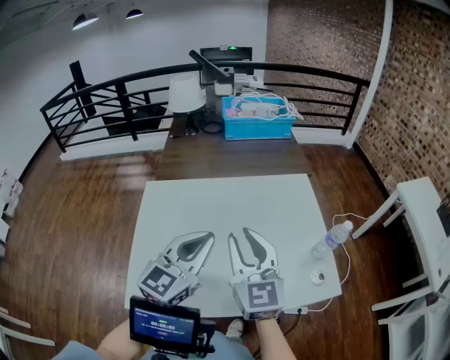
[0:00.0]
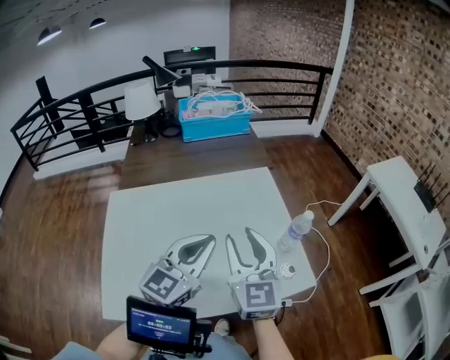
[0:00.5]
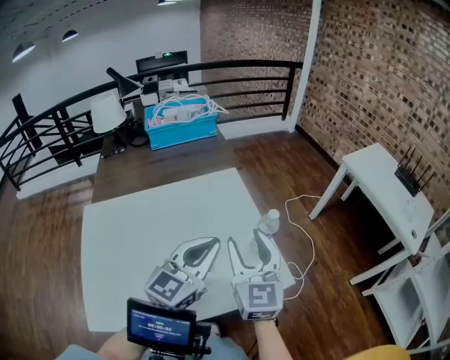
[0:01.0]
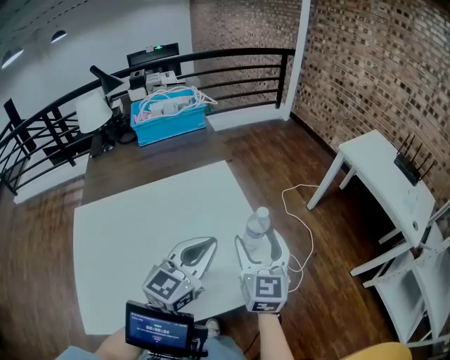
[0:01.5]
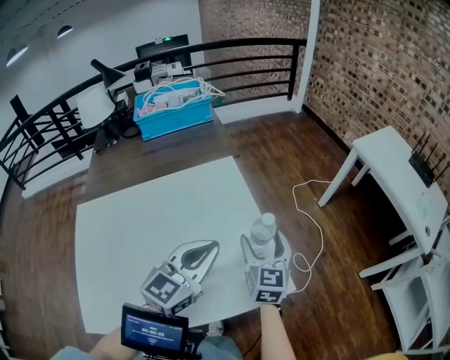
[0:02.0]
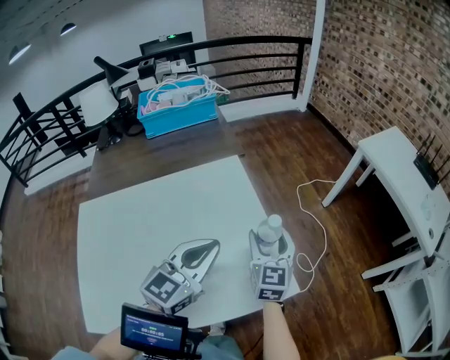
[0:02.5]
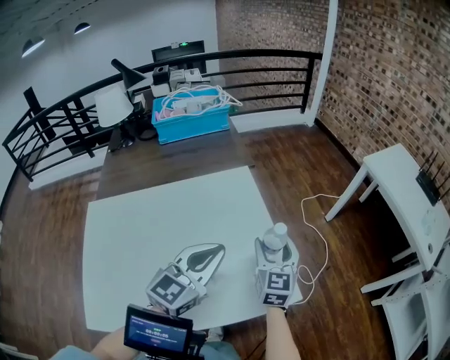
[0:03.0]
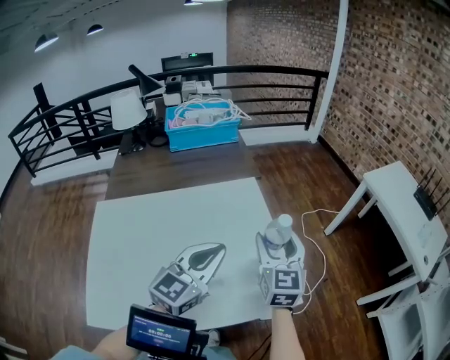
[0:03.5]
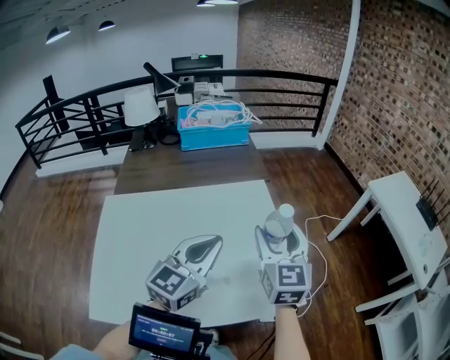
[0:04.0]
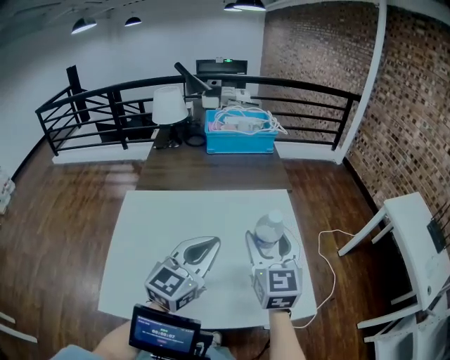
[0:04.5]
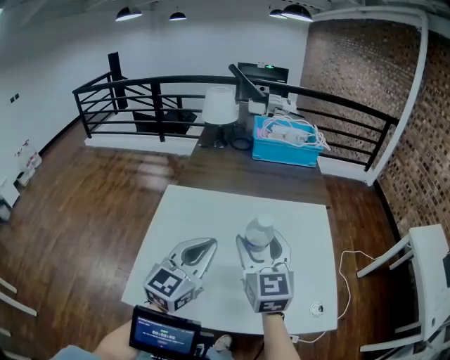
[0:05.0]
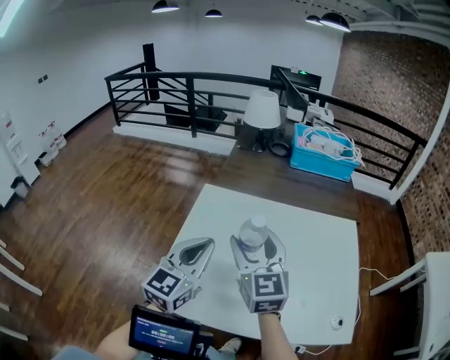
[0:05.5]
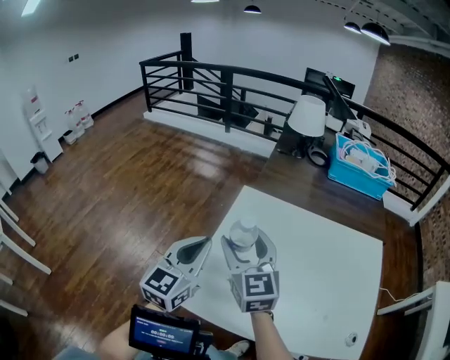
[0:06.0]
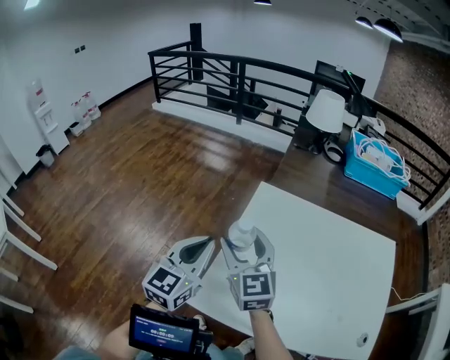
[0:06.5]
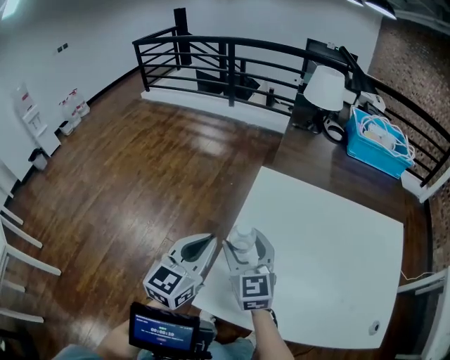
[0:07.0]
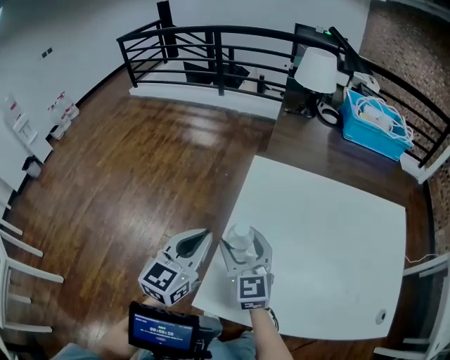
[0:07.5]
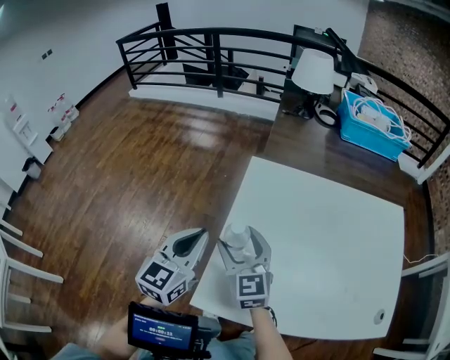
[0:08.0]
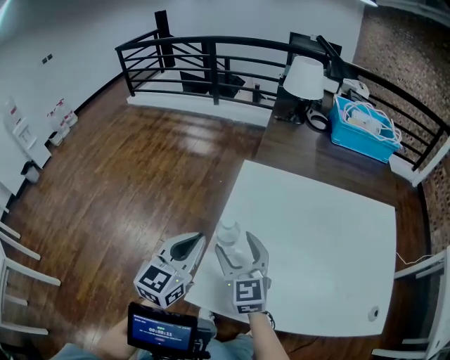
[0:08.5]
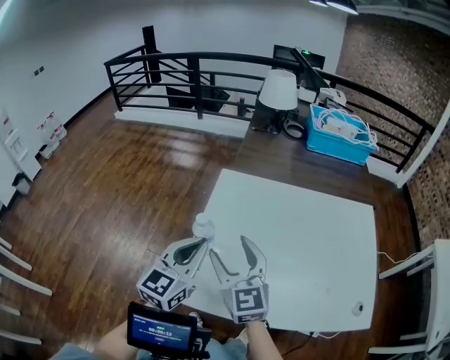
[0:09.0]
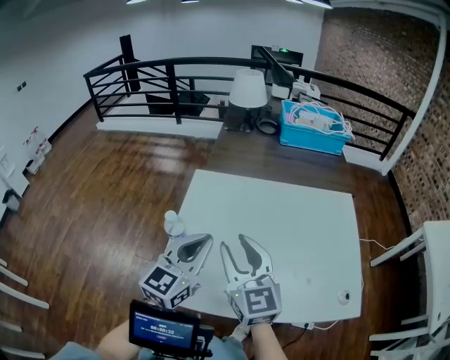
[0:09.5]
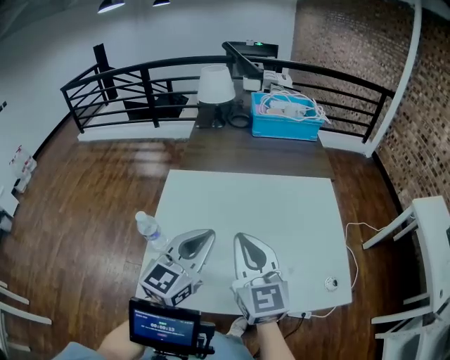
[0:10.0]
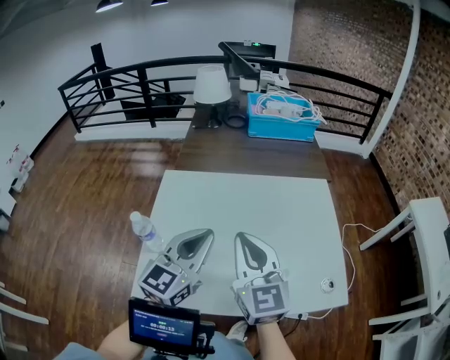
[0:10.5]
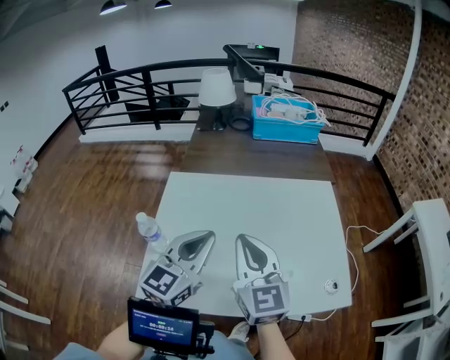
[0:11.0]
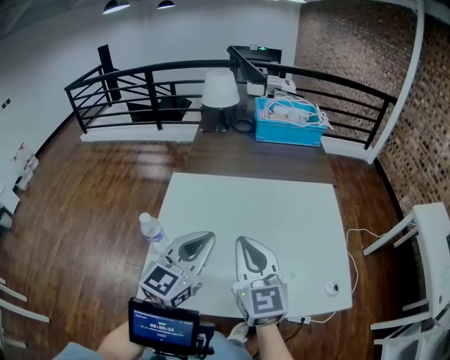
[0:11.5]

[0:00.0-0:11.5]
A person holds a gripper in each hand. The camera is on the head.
0:00.0 to 0:02.0: The right gripper moves to the right, forward and downward, about 35 cm, turns by about 30 degrees, and opens up; the left gripper travels to the right and forward by roughly 25 cm.
0:02.0 to 0:04.0: The right gripper shifts approximately 15 cm upward and to the left, while the left gripper is displaced to the left and upward by about 10 cm.
0:04.0 to 0:06.0: Both grippers are carried approximately 50 cm. The left gripper swivels approximately 40 degrees, while the right gripper turns by approximately 50 degrees.
0:06.0 to 0:07.5: The two grippers go approximately 10 cm downward and to the left.
0:07.5 to 0:09.5: The right gripper goes about 25 cm to the right, upward and backward, and closes up; the left gripper goes approximately 20 cm to the right and upward.
0:09.5 to 0:11.5: Both grippers move to the right, roughly 10 cm. The right gripper closes up.

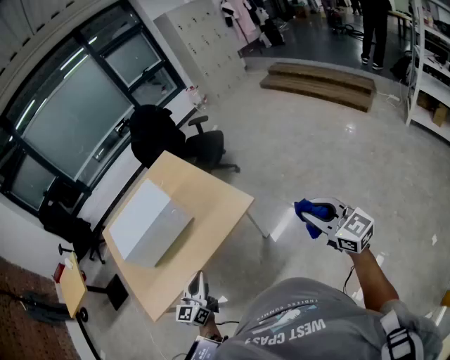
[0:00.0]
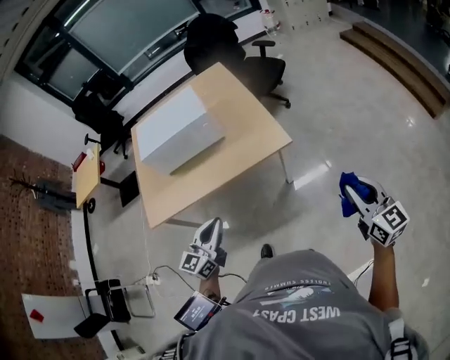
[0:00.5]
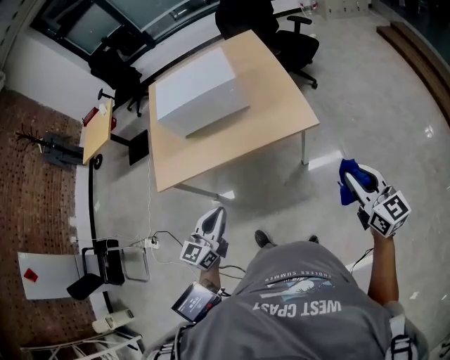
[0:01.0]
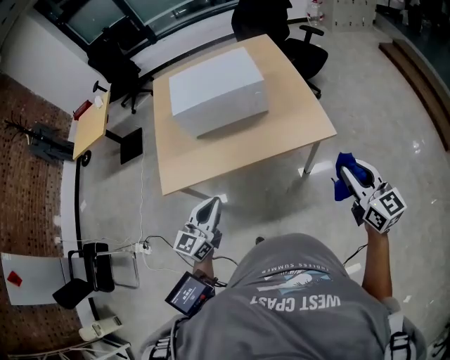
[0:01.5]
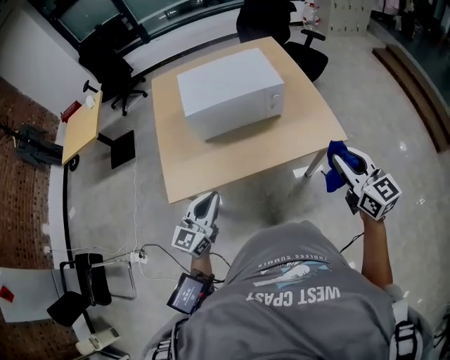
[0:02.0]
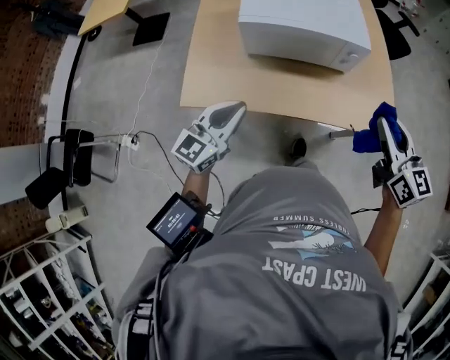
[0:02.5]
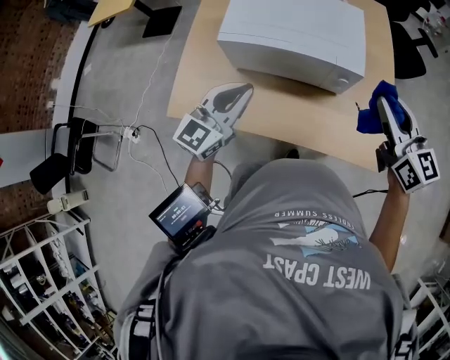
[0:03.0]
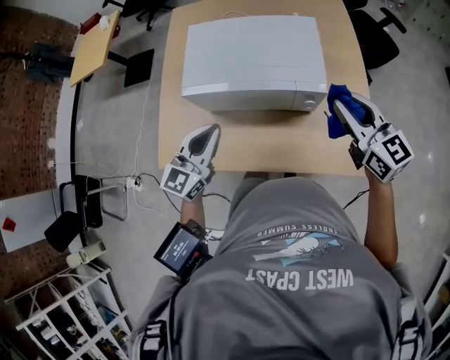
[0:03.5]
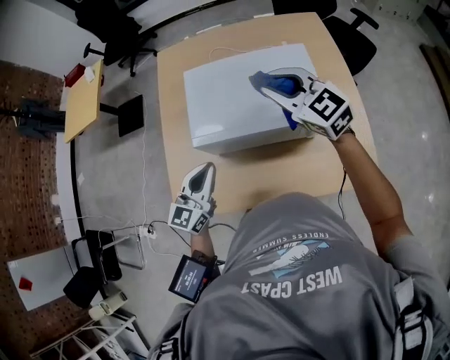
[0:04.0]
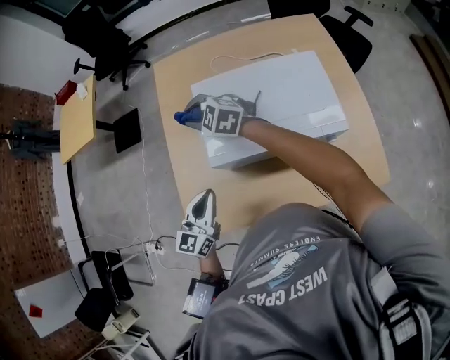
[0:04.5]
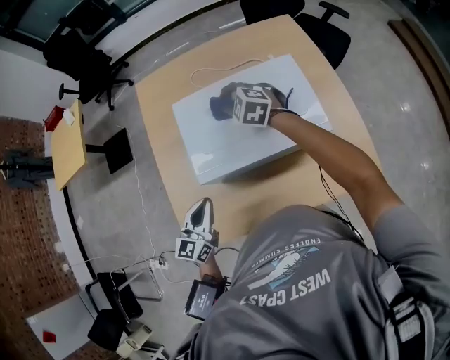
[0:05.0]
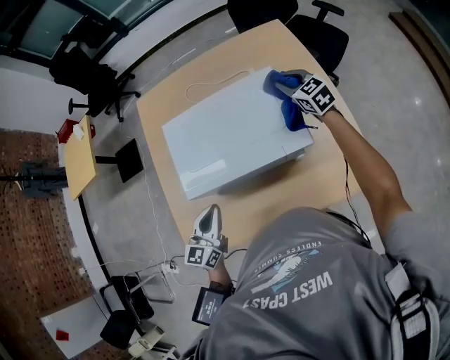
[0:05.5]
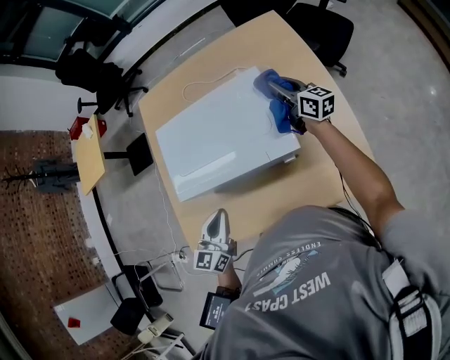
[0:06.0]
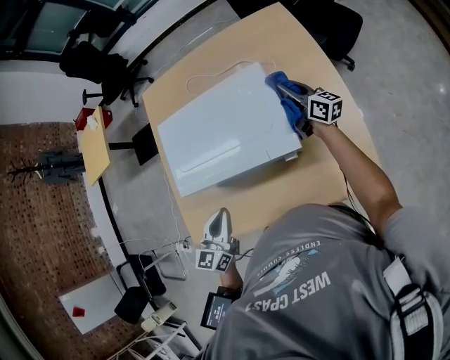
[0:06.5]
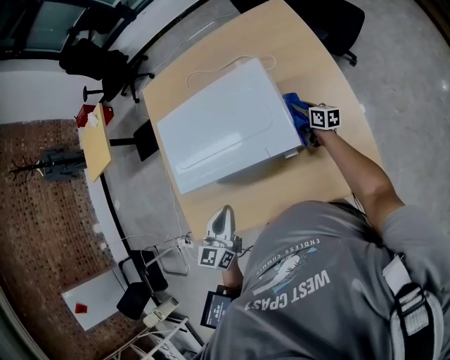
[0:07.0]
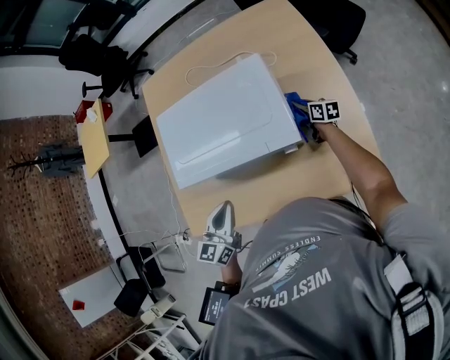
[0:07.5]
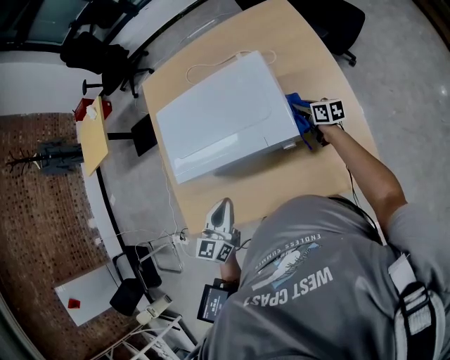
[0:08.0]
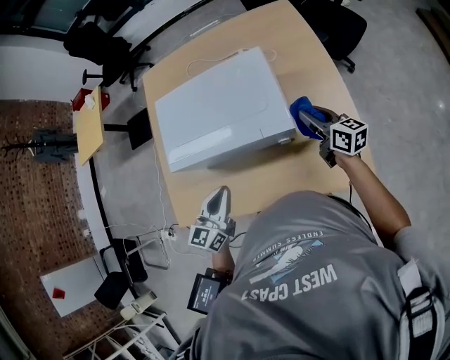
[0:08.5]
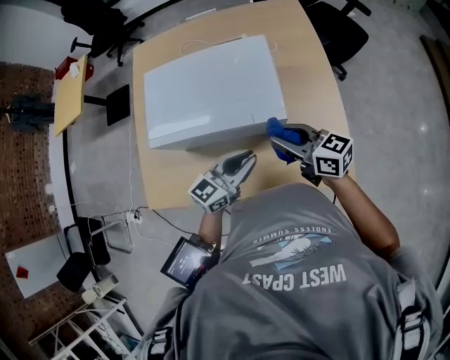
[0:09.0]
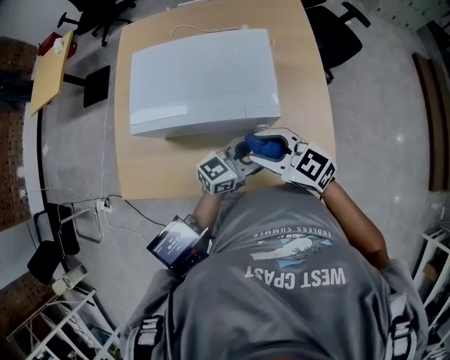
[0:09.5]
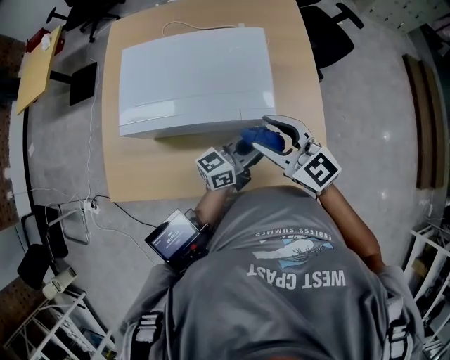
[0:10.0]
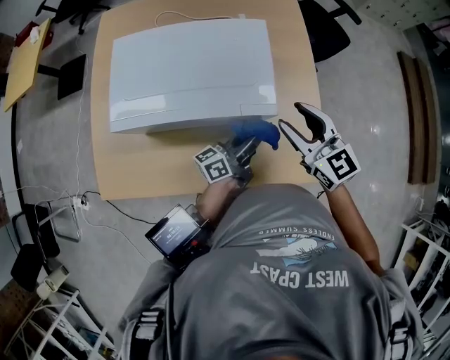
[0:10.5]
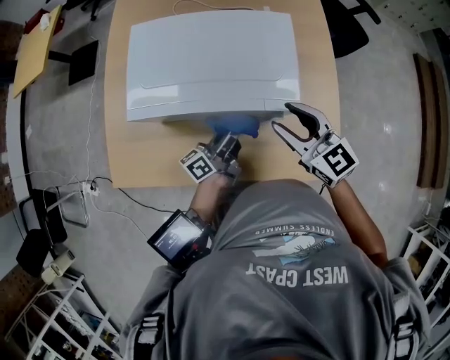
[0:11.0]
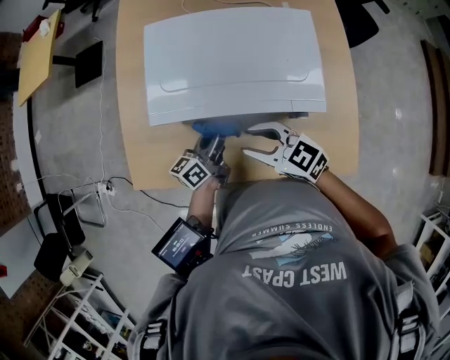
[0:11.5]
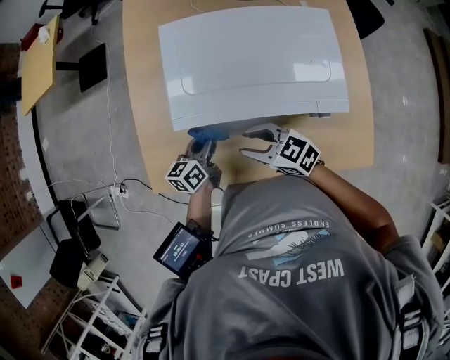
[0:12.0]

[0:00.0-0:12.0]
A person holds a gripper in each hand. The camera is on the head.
0:00.0 to 0:02.0: The right gripper travels to the left and forward by some 35 cm, while the left gripper heads to the left, covering roughly 25 cm.
0:02.0 to 0:04.0: The left gripper moves forward, approximately 30 cm; the right gripper goes approximately 50 cm forward, and swivels about 30 degrees.
0:04.0 to 0:06.0: The left gripper heads to the right, covering some 10 cm. The right gripper goes approximately 30 cm to the right, downward and forward, and rotates around the line of its fingers by approximately 50 degrees, clockwise from behind.
0:06.0 to 0:08.0: The right gripper is displaced downward and backward by roughly 20 cm, and turns by roughly 30 degrees.
0:08.0 to 0:10.0: The left gripper changes place by about 25 cm, turns by about 50 degrees, and opens, then closes again. Meanwhile the right gripper is displaced upward by approximately 25 cm, twists some 50 degrees counterclockwise, seen from behind, and opens up.
0:10.0 to 0:12.0: The left gripper moves about 40 cm, and turns by roughly 40 degrees, while the right gripper shifts by roughly 25 cm, and rotates some 30 degrees.

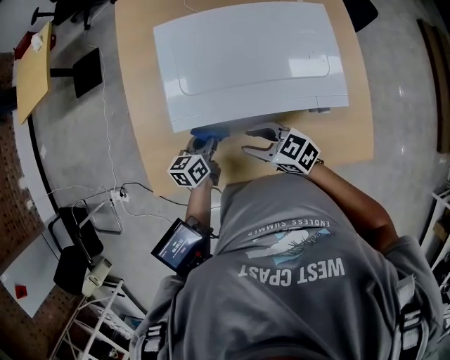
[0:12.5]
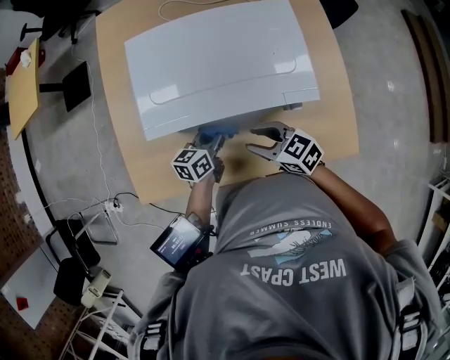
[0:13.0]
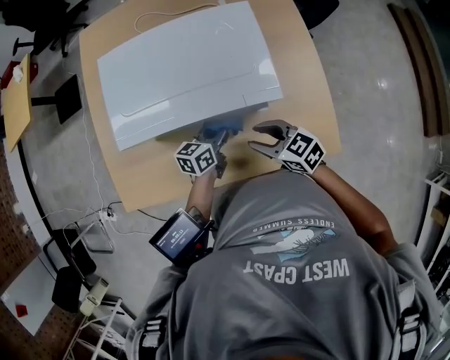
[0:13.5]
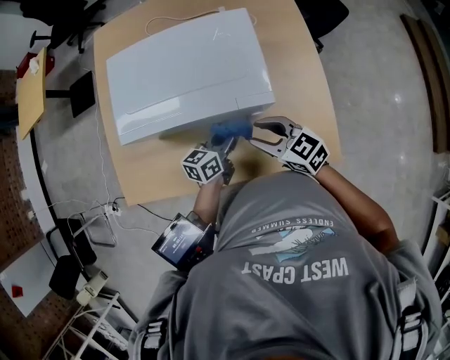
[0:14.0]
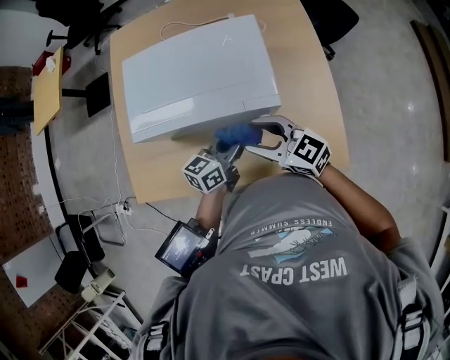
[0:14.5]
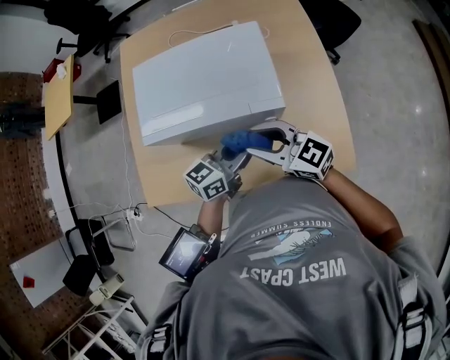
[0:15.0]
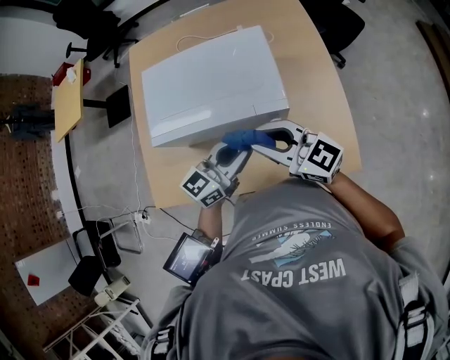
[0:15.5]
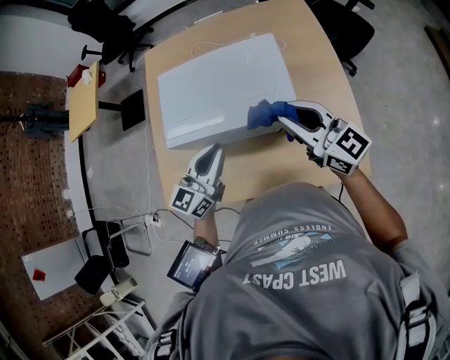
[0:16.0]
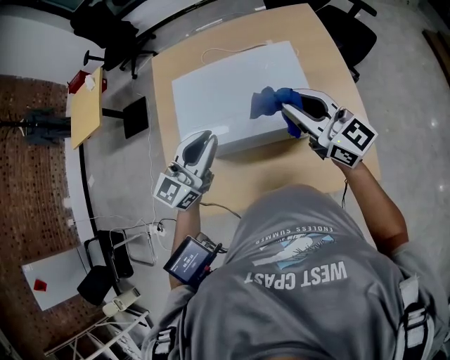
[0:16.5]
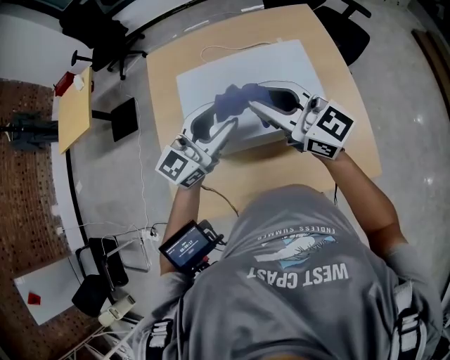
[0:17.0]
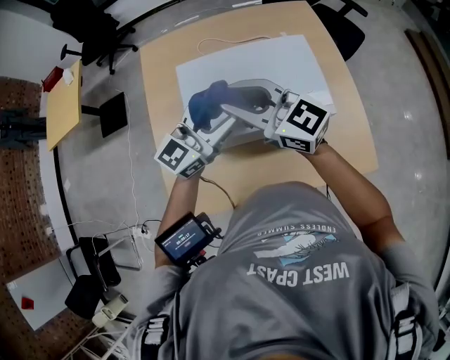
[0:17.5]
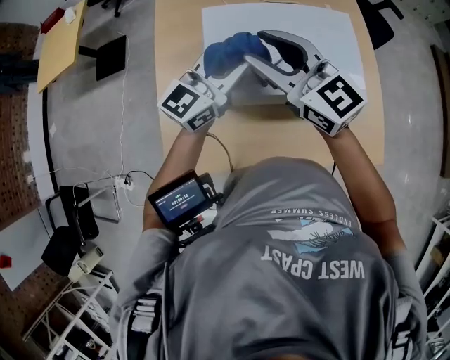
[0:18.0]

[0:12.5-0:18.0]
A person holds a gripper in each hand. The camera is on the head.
0:12.5 to 0:14.5: The grippers both shift to the right and upward by about 25 cm. The left gripper changes its angle by approximately 20 degrees; the right gripper swivels about 20 degrees.
0:14.5 to 0:16.0: The right gripper moves upward and to the right, some 15 cm, swivels about 20 degrees, and closes; the left gripper shifts approximately 15 cm upward and to the left, and rotates approximately 30 degrees.
0:16.0 to 0:18.0: The right gripper is displaced to the left by some 30 cm, and opens, while the left gripper travels forward and to the left by about 15 cm, and opens, then closes once more.
